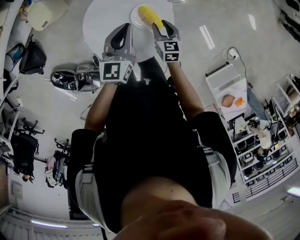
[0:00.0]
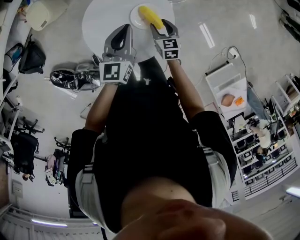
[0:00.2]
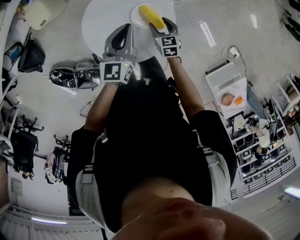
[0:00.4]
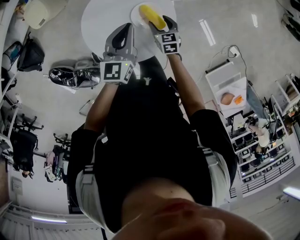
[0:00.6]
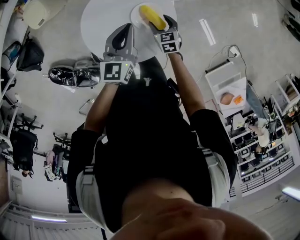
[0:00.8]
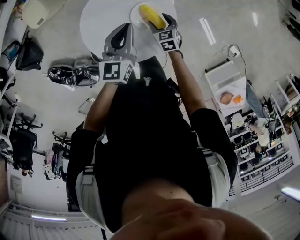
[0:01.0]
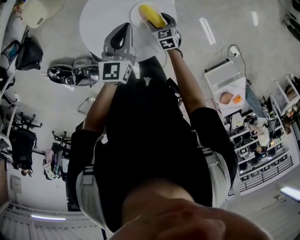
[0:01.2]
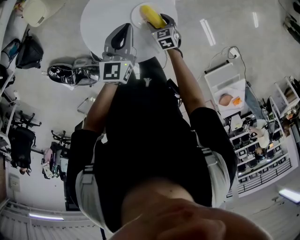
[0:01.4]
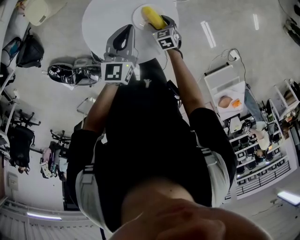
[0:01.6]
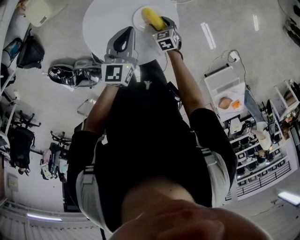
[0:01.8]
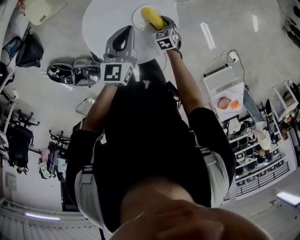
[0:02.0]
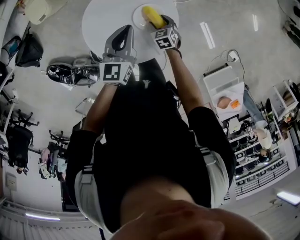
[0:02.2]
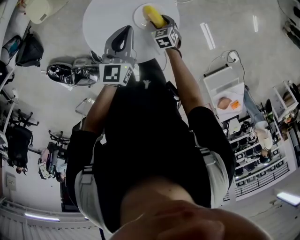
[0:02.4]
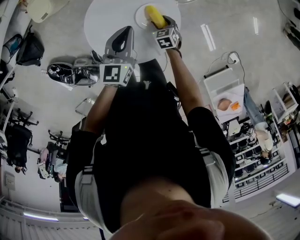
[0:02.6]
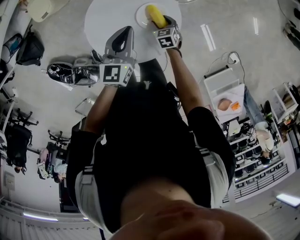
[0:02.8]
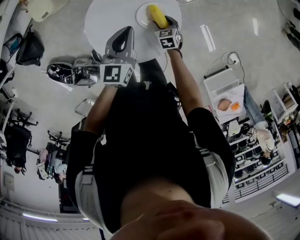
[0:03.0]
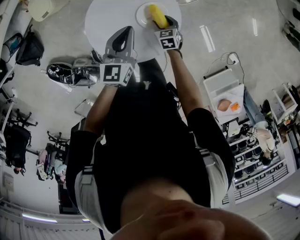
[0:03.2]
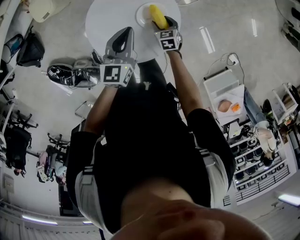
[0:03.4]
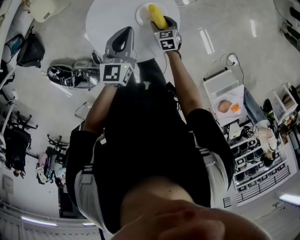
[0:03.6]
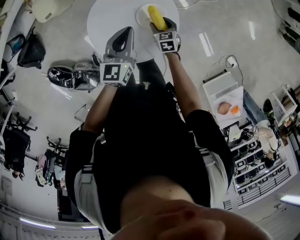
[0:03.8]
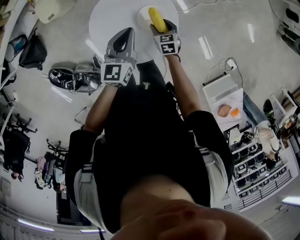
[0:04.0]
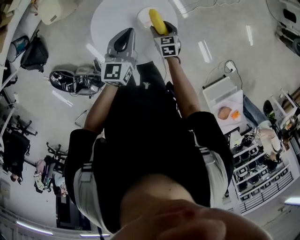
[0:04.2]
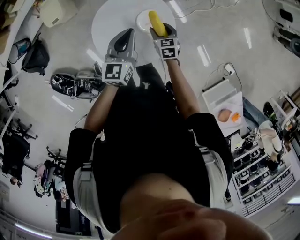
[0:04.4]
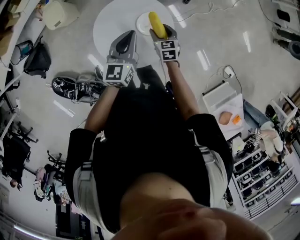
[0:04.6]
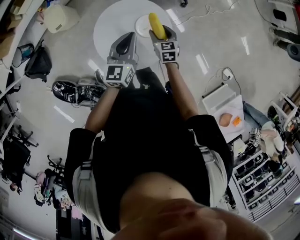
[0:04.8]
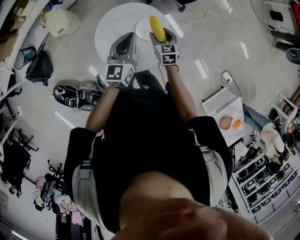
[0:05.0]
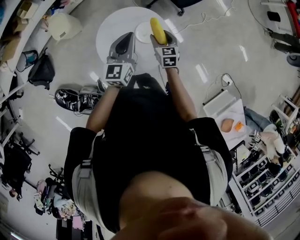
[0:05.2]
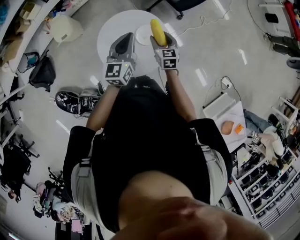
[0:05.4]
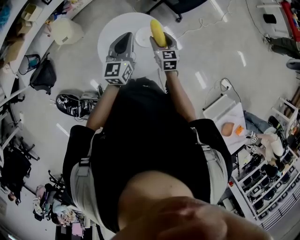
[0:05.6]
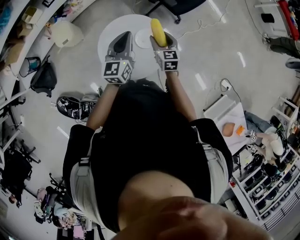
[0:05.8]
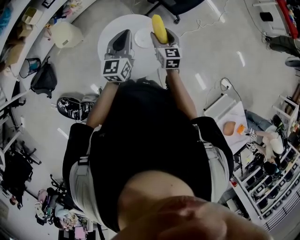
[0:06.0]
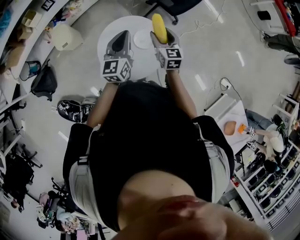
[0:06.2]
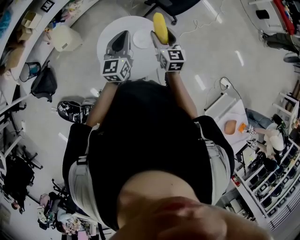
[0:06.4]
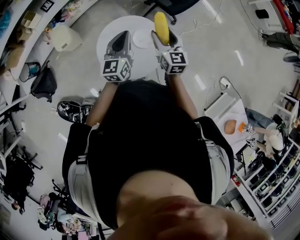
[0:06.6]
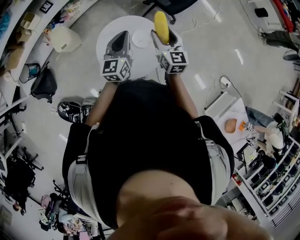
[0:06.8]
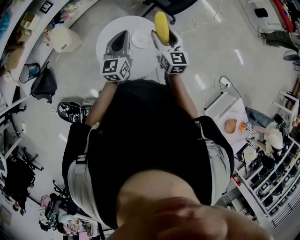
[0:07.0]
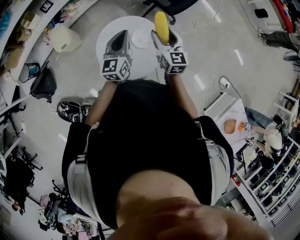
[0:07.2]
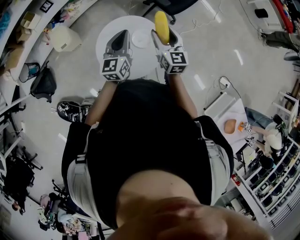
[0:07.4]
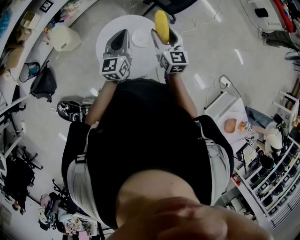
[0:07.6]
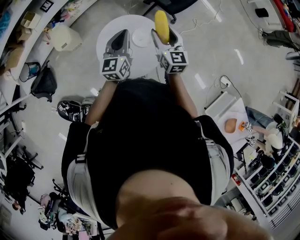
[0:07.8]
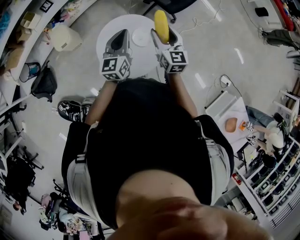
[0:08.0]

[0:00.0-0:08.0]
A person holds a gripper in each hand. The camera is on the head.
0:00.0 to 0:01.6: The right gripper moves downward, about 10 cm, turns by some 30 degrees, and opens up.
0:01.6 to 0:03.2: The grippers move only a little.
0:03.2 to 0:04.8: The right gripper heads upward, covering approximately 20 cm, and swivels some 20 degrees. The left gripper moves upward, about 10 cm.
0:04.8 to 0:06.4: The right gripper goes approximately 20 cm upward, and turns by roughly 20 degrees. Meanwhile the left gripper is displaced upward by approximately 10 cm.
0:06.4 to 0:08.0: The grippers make only small movements.

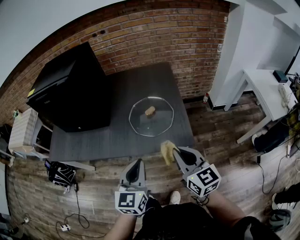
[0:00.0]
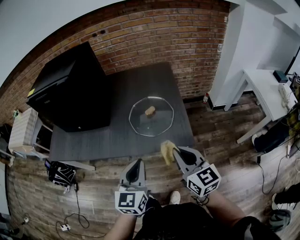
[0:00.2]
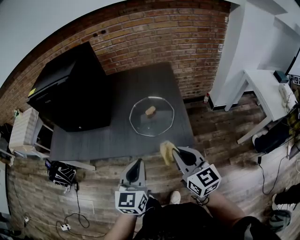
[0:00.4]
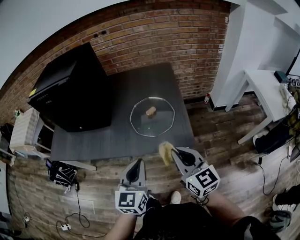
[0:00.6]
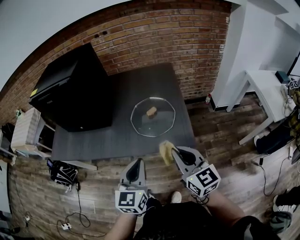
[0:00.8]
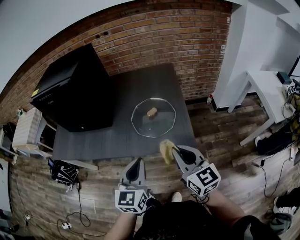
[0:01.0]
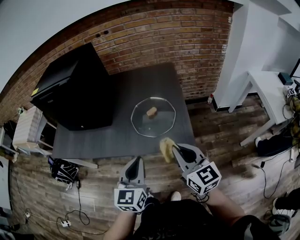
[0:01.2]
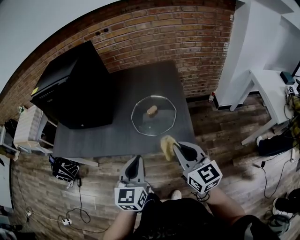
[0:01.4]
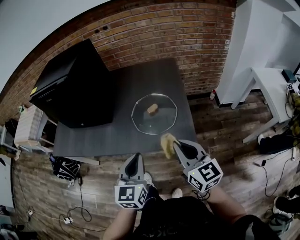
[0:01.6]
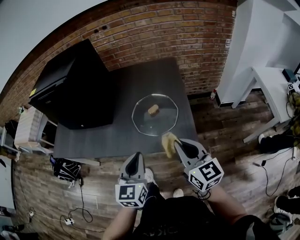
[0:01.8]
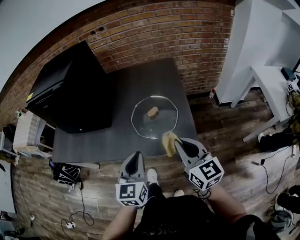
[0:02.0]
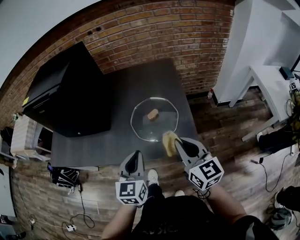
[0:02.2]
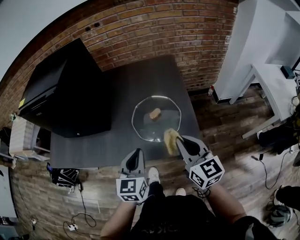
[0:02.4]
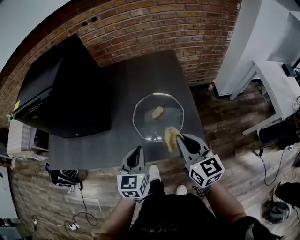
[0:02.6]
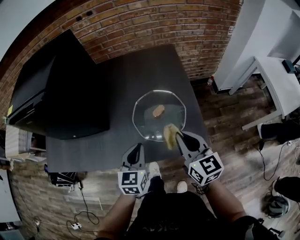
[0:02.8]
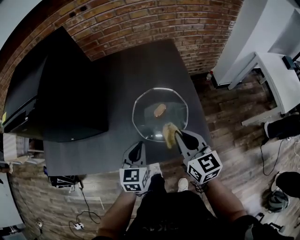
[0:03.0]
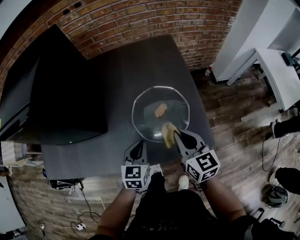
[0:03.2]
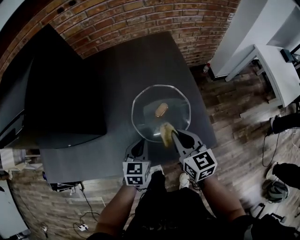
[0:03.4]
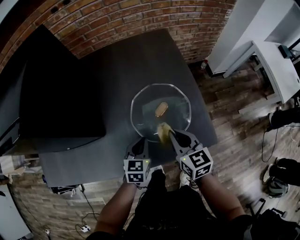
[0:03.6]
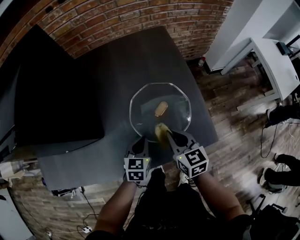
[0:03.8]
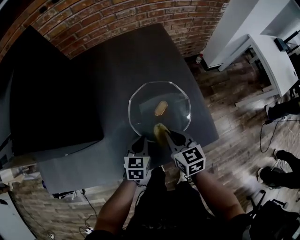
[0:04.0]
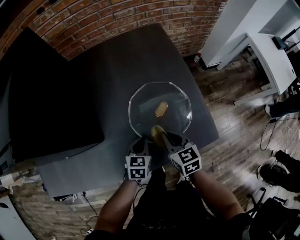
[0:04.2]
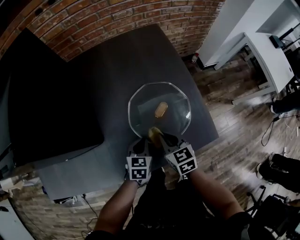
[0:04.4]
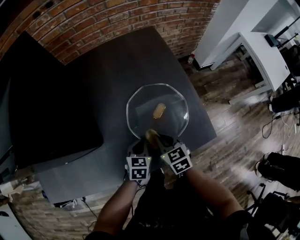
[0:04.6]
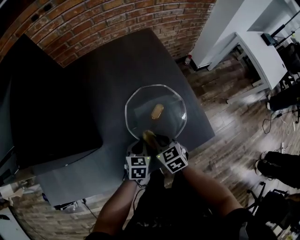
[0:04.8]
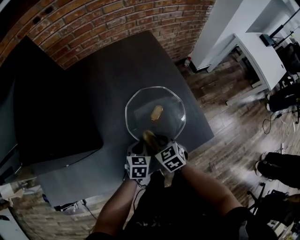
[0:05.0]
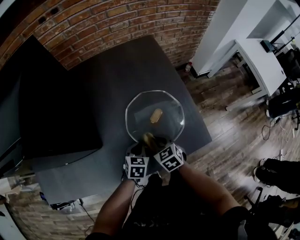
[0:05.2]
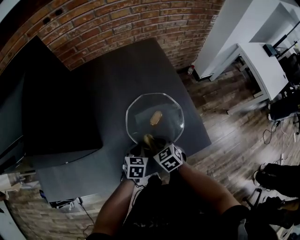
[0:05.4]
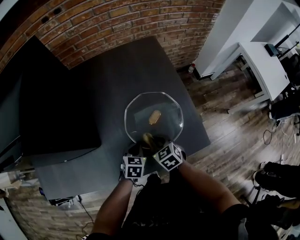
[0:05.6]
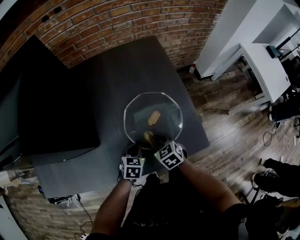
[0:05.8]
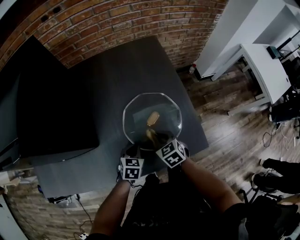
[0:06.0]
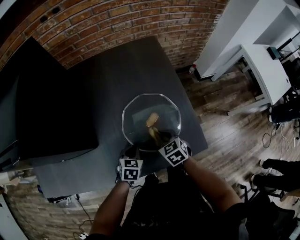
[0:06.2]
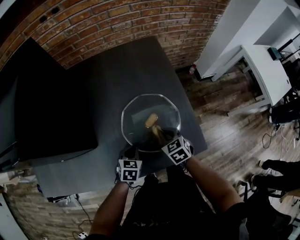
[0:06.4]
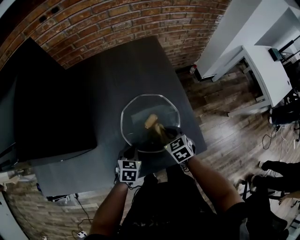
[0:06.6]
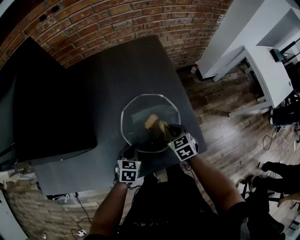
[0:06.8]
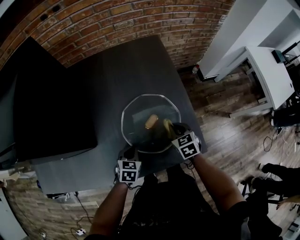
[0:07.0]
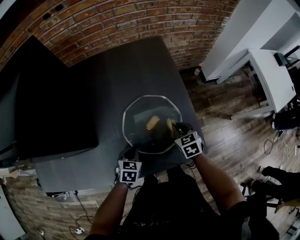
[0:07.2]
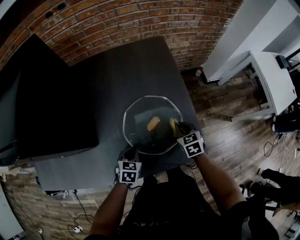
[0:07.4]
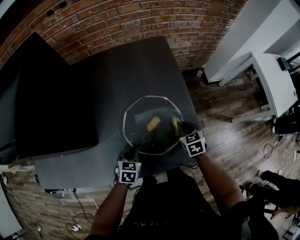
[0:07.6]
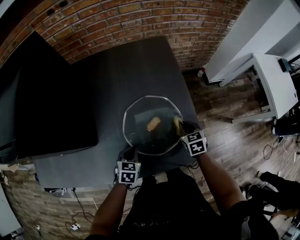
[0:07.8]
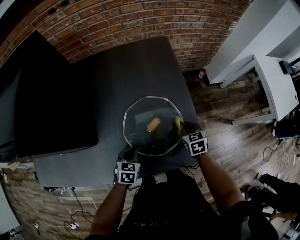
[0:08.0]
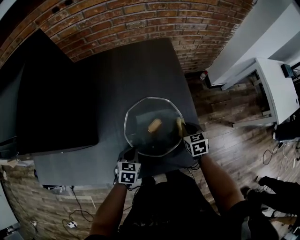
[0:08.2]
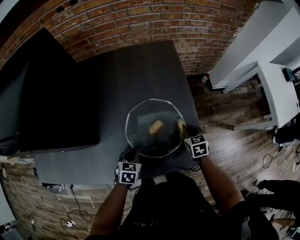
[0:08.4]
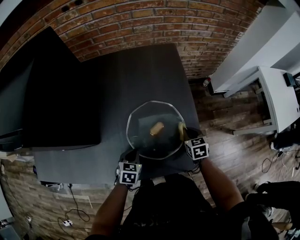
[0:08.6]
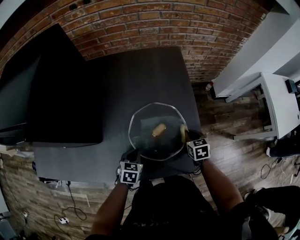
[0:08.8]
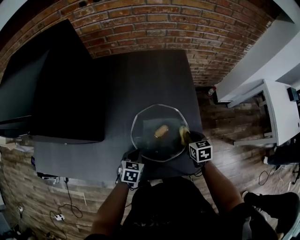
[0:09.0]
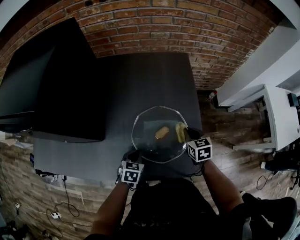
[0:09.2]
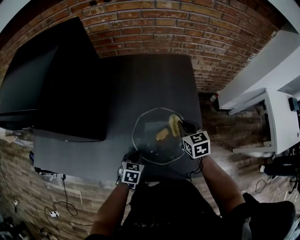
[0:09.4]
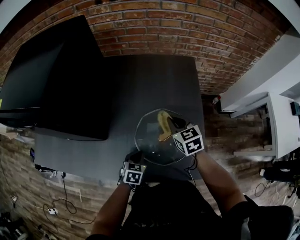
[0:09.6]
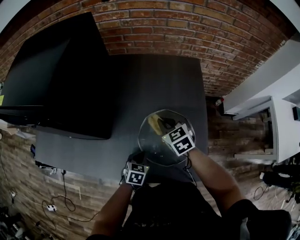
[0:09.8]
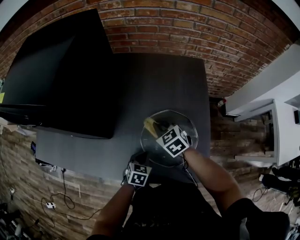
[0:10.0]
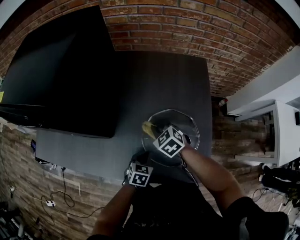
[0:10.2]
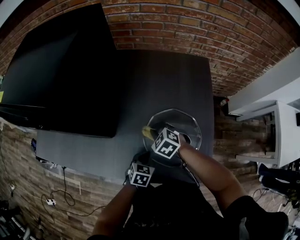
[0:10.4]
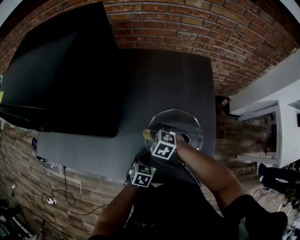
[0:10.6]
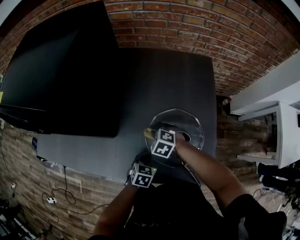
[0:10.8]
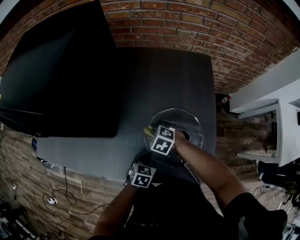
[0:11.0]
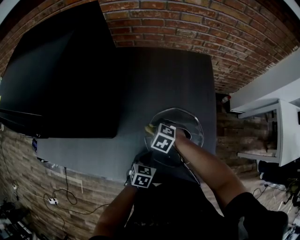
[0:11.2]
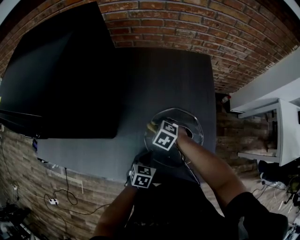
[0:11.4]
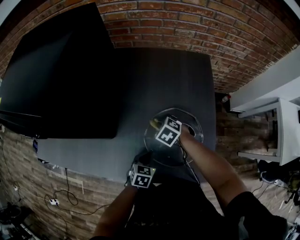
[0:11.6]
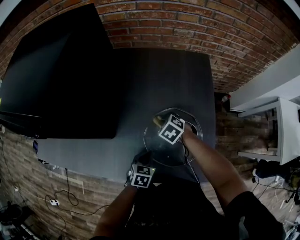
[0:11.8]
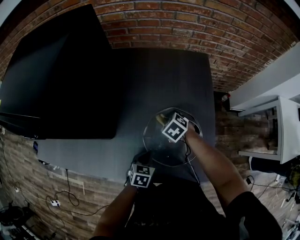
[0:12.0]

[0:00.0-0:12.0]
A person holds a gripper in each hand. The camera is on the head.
0:00.0 to 0:01.6: The grippers stay close to where they were, moving slightly.
0:01.6 to 0:03.0: Both grippers move forward and downward, some 20 cm.
0:03.0 to 0:04.4: The right gripper shifts some 20 cm downward and to the left, and turns by some 20 degrees. Meanwhile the left gripper travels downward by some 15 cm, and turns by about 20 degrees.
0:04.4 to 0:06.0: The grippers stay close to where they were, moving slightly.
0:06.0 to 0:07.6: The right gripper heads to the right and forward, covering some 15 cm.
0:07.6 to 0:09.0: There are only small adjustments of the grippers.
0:09.0 to 0:10.4: The right gripper is displaced to the left by about 25 cm, and rotates around the line of its fingers by some 50 degrees, counterclockwise from behind.
0:10.4 to 0:12.0: The right gripper is displaced to the right and forward by approximately 10 cm.

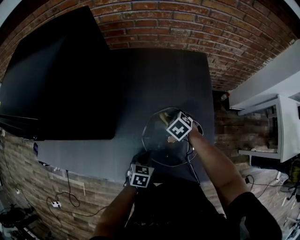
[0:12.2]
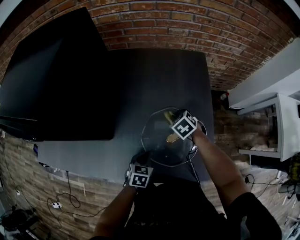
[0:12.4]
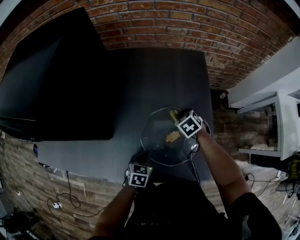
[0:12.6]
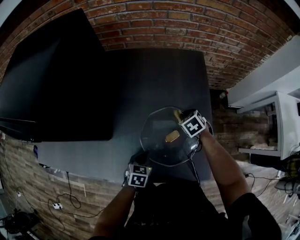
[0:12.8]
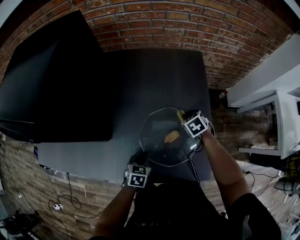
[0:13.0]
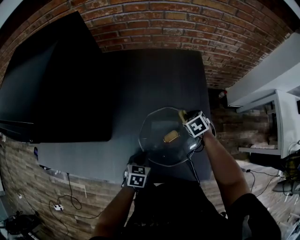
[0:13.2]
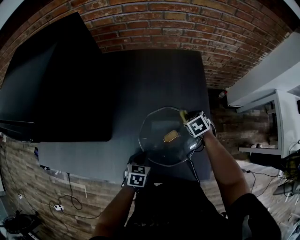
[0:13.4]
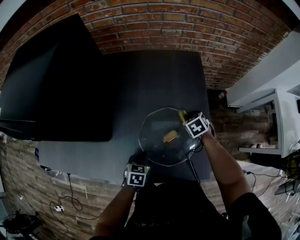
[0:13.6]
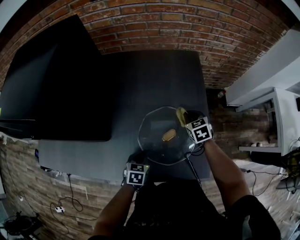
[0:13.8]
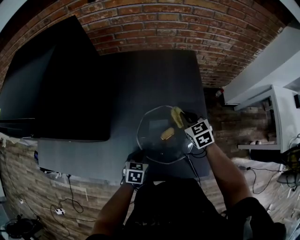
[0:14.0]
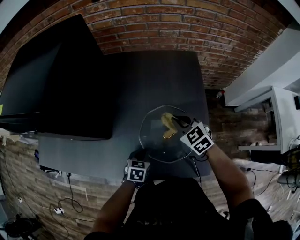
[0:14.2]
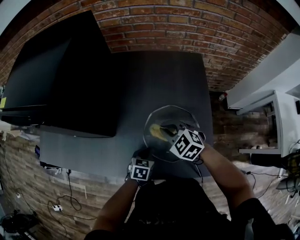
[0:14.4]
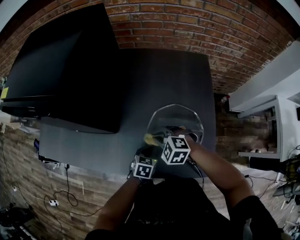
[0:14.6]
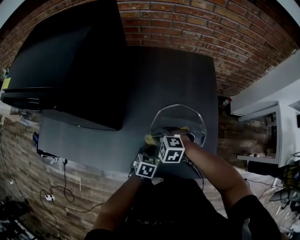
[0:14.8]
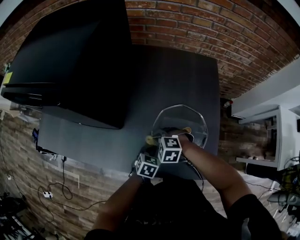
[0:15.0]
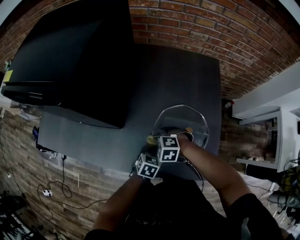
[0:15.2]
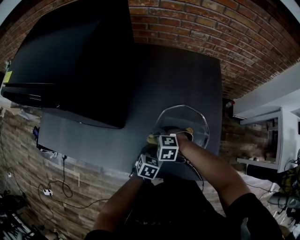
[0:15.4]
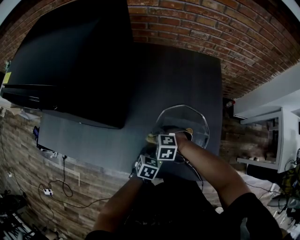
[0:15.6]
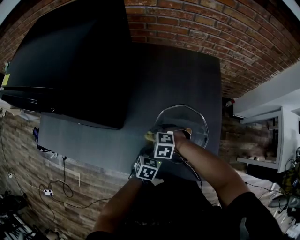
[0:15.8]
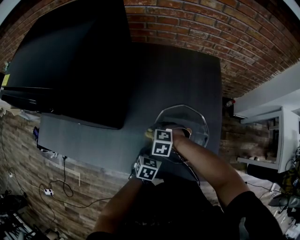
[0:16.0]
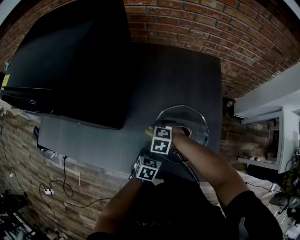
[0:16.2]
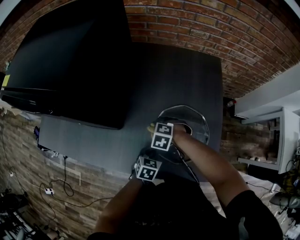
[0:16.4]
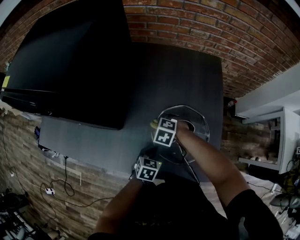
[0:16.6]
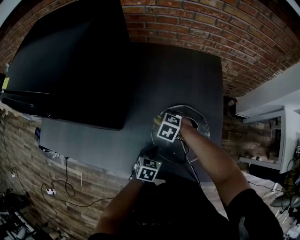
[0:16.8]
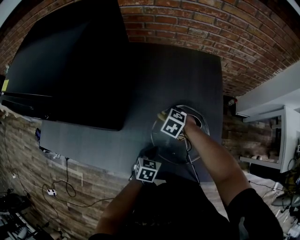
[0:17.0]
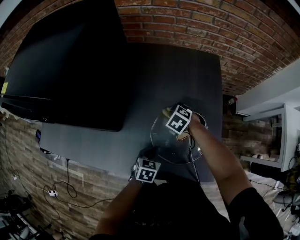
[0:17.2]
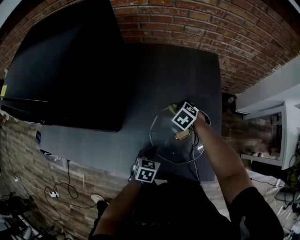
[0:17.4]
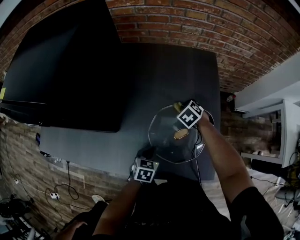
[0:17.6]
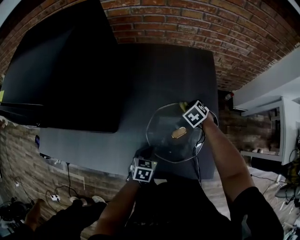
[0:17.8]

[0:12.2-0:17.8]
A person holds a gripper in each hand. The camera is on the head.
0:12.2 to 0:13.6: The right gripper goes approximately 10 cm to the right.
0:13.6 to 0:15.0: The right gripper shifts some 30 cm to the left and backward, and twists roughly 60 degrees counterclockwise, seen from behind.
0:15.0 to 0:16.4: The right gripper travels forward by roughly 5 cm.
0:16.4 to 0:17.8: The right gripper shifts about 20 cm to the right and forward, and rotates about 40 degrees.
